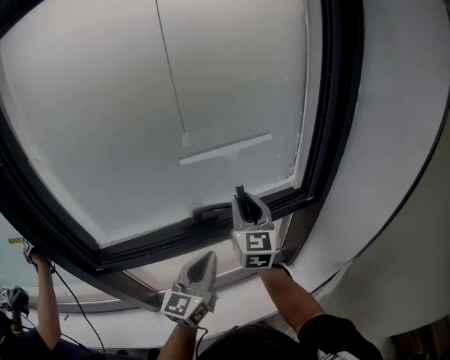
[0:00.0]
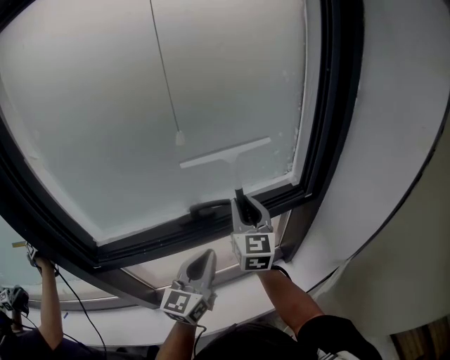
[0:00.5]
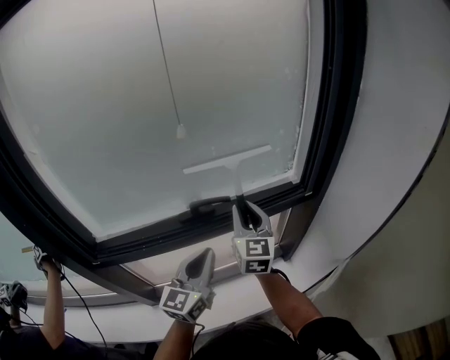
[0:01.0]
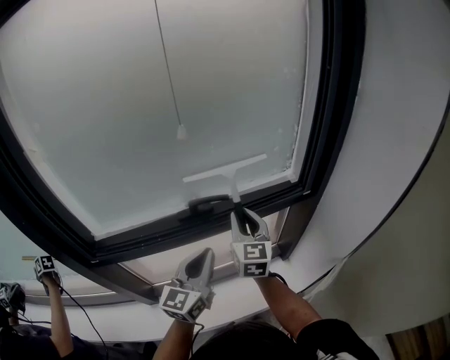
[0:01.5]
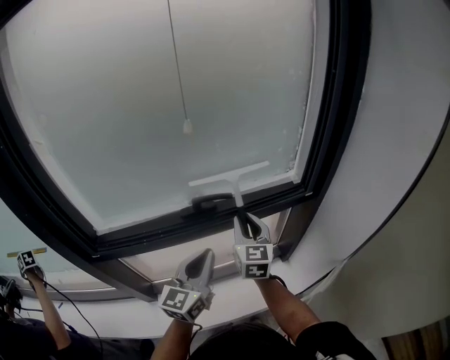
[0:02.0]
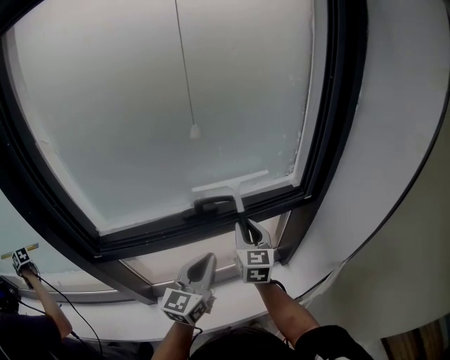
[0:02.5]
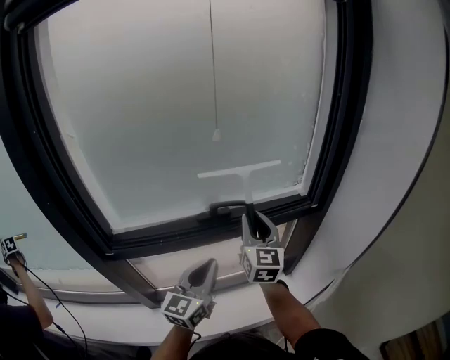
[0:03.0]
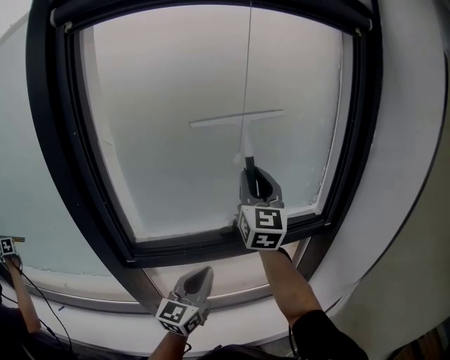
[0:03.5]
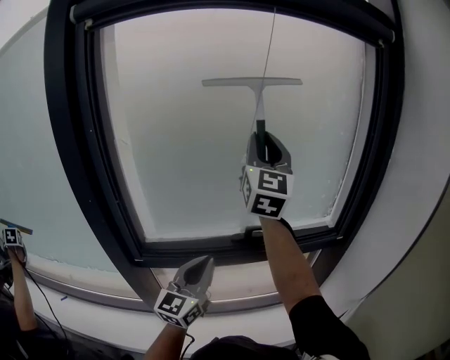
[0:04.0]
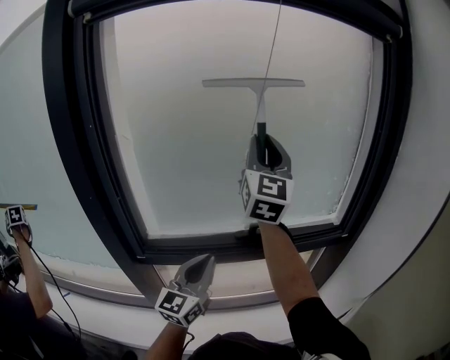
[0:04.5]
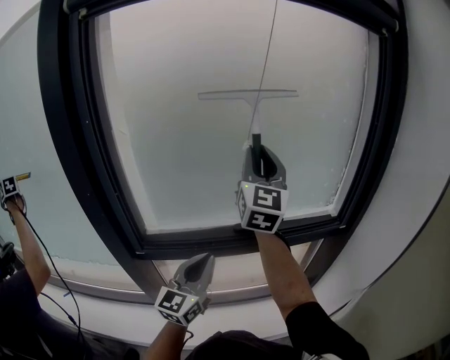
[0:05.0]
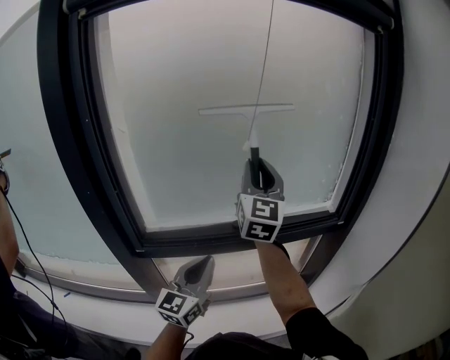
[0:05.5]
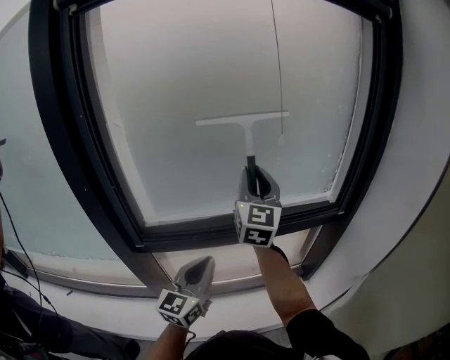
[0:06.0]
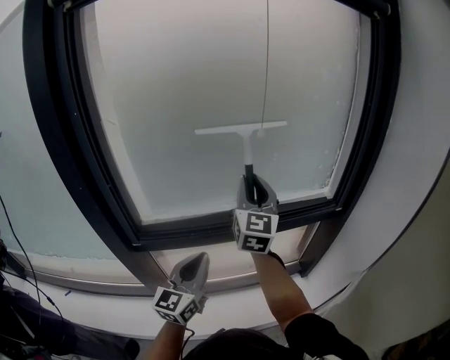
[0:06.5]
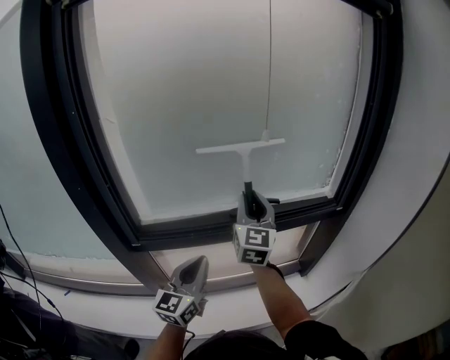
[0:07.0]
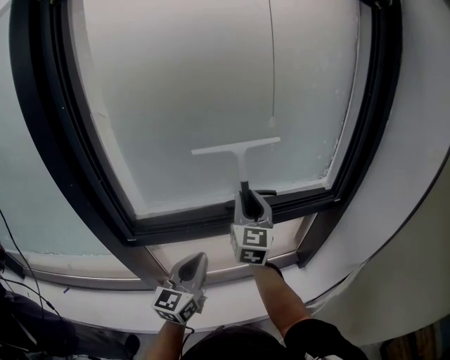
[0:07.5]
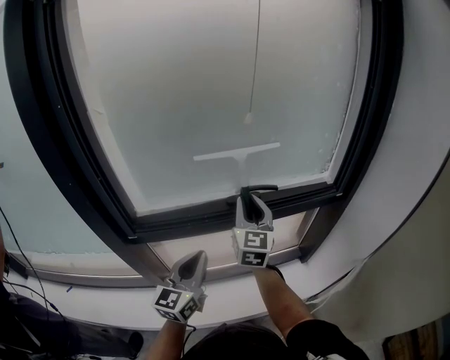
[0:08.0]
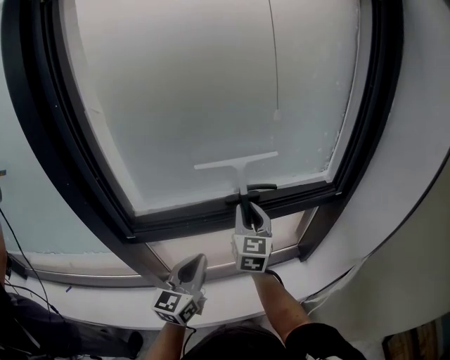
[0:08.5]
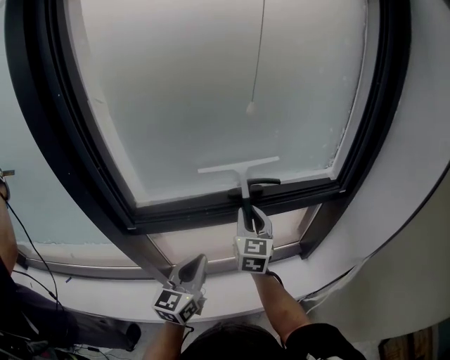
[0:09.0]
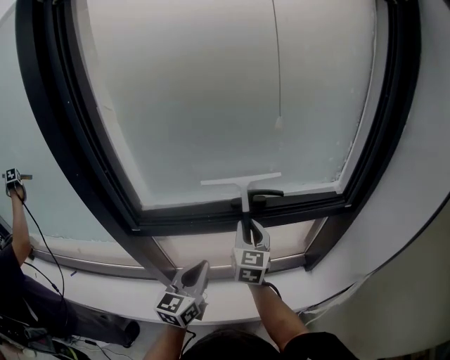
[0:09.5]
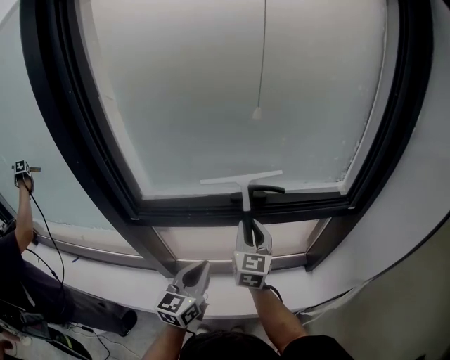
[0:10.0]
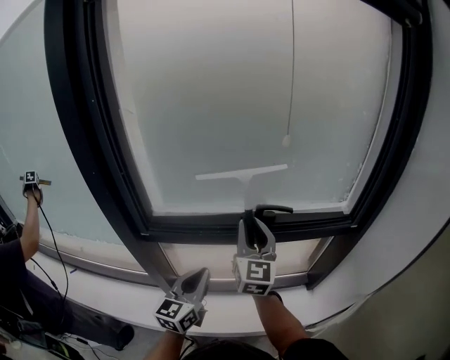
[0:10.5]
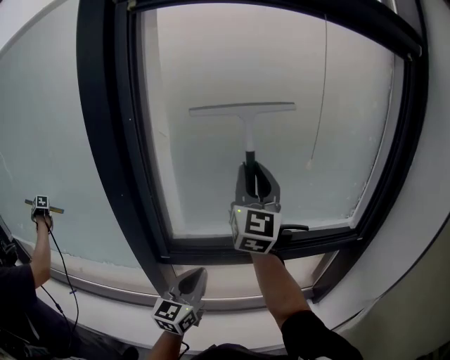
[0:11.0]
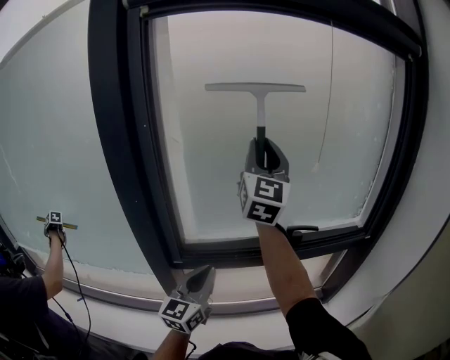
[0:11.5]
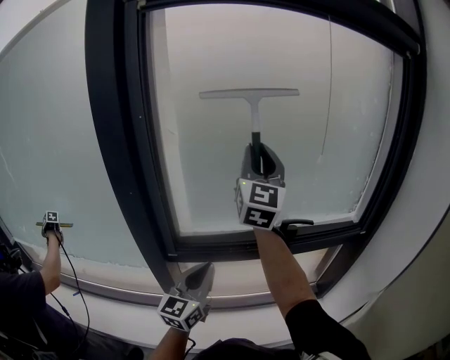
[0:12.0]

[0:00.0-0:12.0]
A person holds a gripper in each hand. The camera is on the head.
0:00.0 to 0:02.0: The right gripper shifts approximately 10 cm downward.
0:02.0 to 0:04.0: The left gripper is displaced to the left and upward by approximately 15 cm. Meanwhile the right gripper is displaced upward by about 40 cm, and tips its fingers upward by some 30 degrees.
0:04.0 to 0:06.0: The right gripper shifts roughly 15 cm downward; the left gripper changes place by roughly 5 cm.
0:06.0 to 0:08.0: The right gripper goes approximately 15 cm downward.
0:08.0 to 0:10.0: The left gripper shifts by approximately 5 cm. Meanwhile the right gripper shifts some 10 cm downward.
0:10.0 to 0:12.0: The left gripper is displaced to the left and upward by roughly 15 cm. Meanwhile the right gripper heads upward, covering approximately 35 cm, and angles its fingers upward, by roughly 30 degrees.

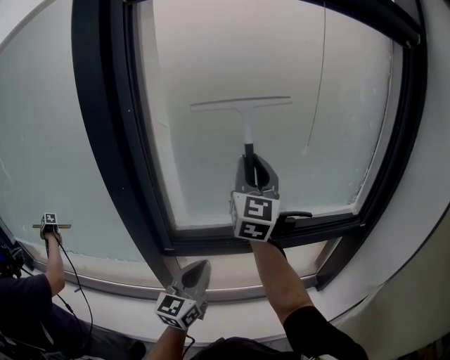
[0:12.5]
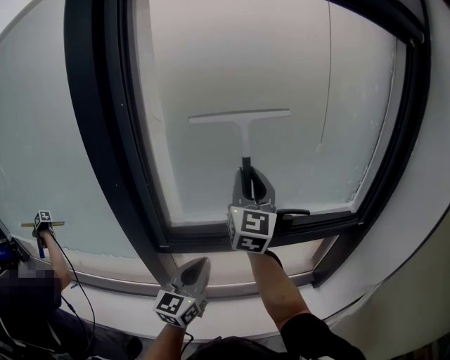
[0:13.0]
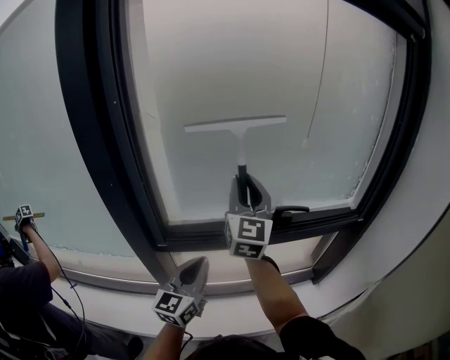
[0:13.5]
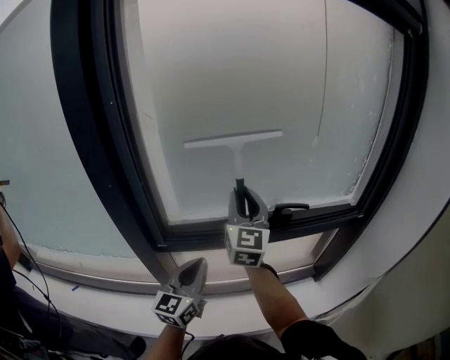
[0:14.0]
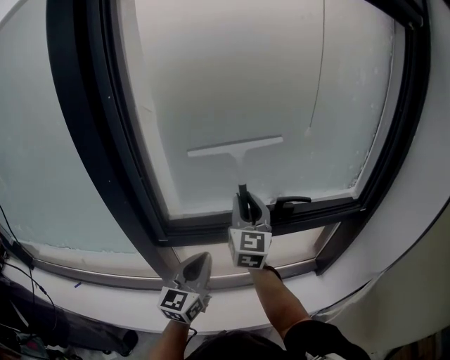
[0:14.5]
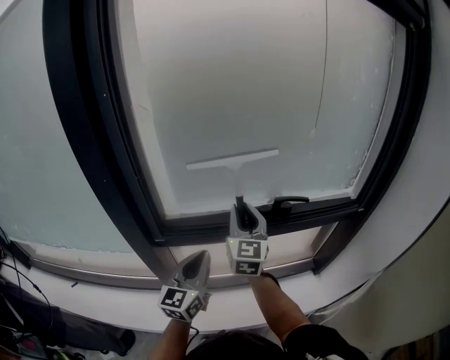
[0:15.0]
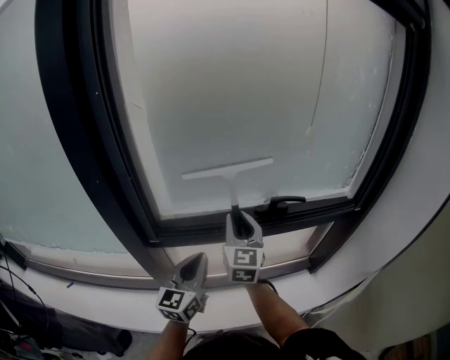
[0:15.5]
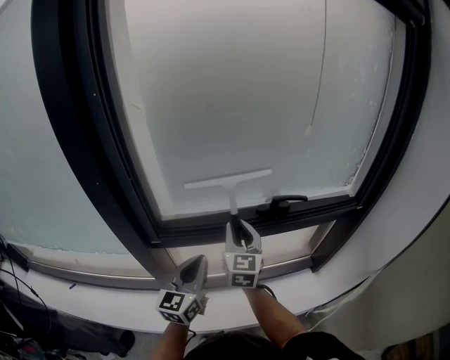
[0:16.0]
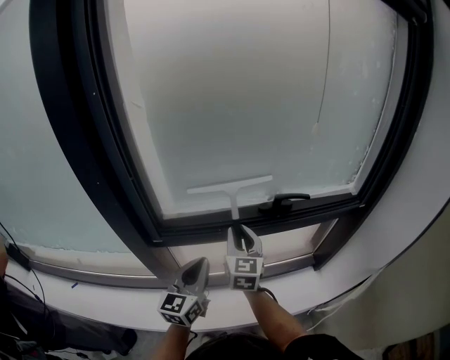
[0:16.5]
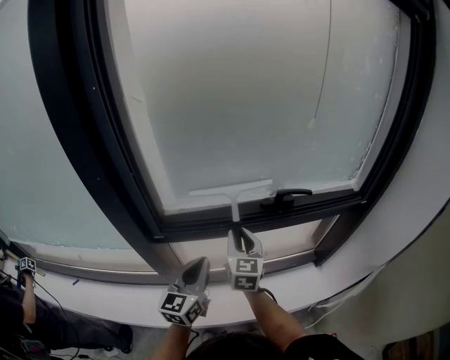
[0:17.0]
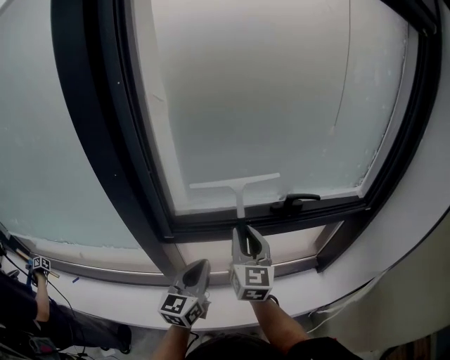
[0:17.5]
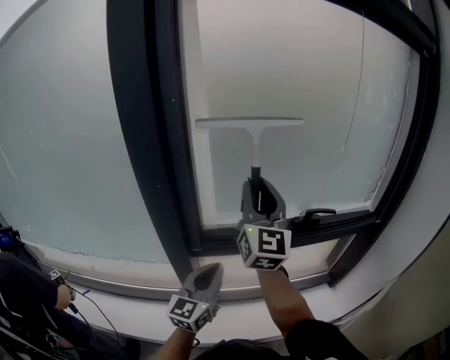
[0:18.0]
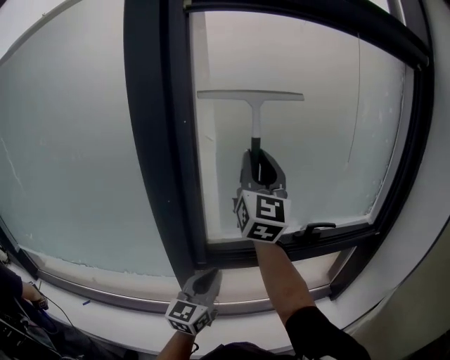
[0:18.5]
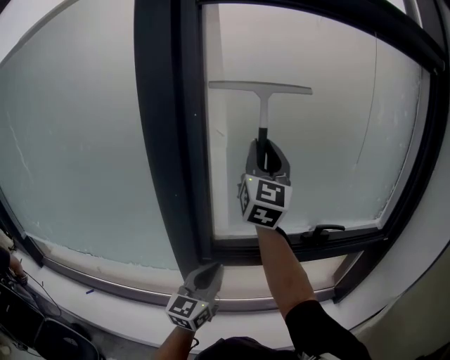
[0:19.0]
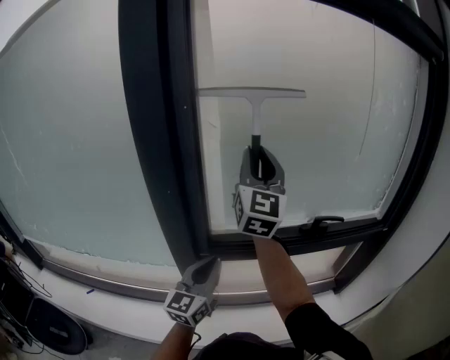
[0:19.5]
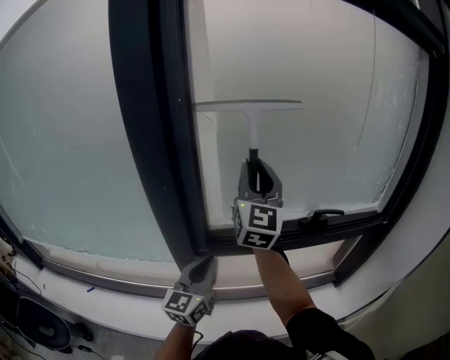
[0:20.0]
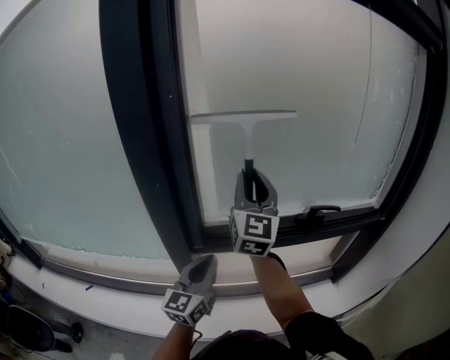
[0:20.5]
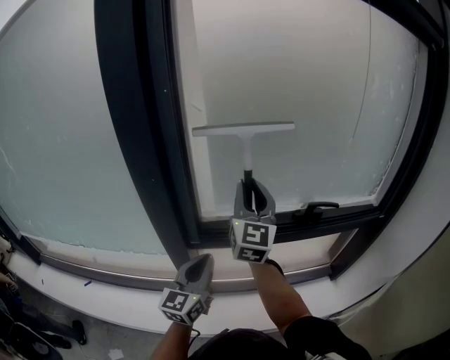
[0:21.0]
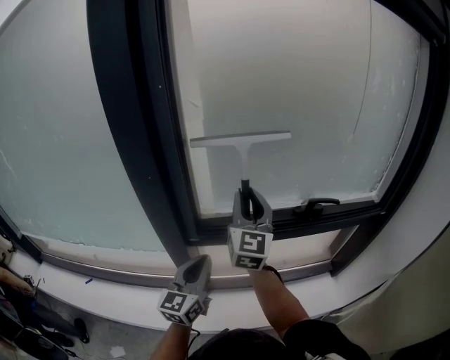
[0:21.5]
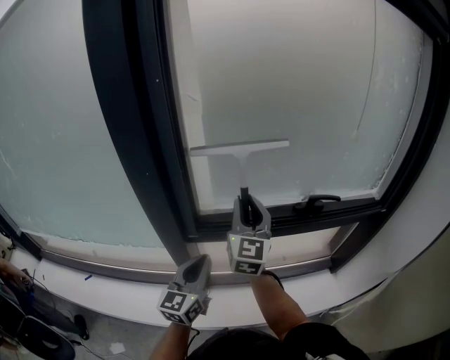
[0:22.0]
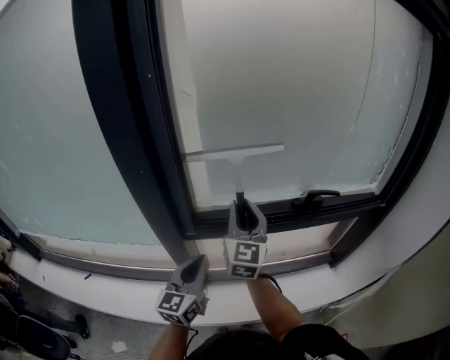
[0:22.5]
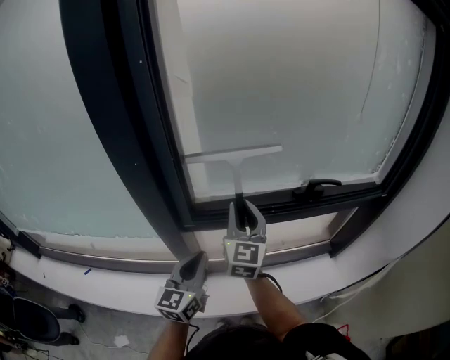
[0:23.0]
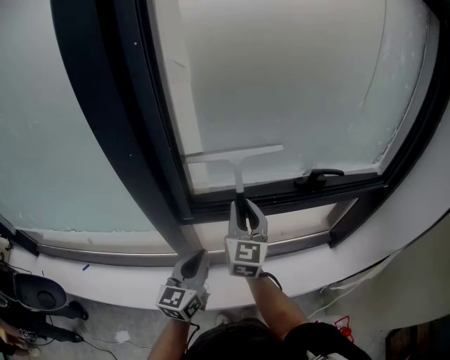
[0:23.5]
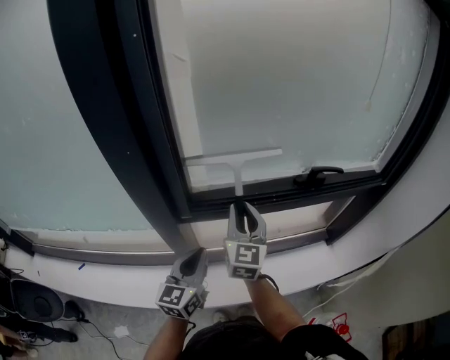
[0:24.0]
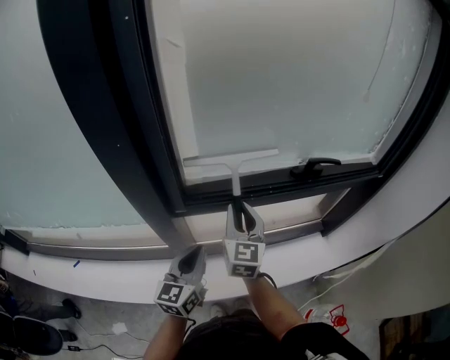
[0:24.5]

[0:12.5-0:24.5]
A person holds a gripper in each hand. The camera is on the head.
0:12.5 to 0:14.5: The right gripper travels downward by some 15 cm.
0:14.5 to 0:16.5: The right gripper heads downward, covering about 10 cm.
0:16.5 to 0:18.5: The left gripper goes about 10 cm to the left and upward, while the right gripper moves upward, about 35 cm, and tips its fingers upward by some 40 degrees.
0:18.5 to 0:20.5: The right gripper goes approximately 10 cm downward.
0:20.5 to 0:22.5: The right gripper goes approximately 15 cm downward.
0:22.5 to 0:24.5: The right gripper shifts roughly 10 cm downward, while the left gripper is displaced downward by about 5 cm.

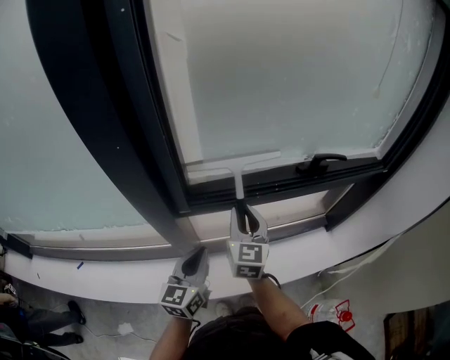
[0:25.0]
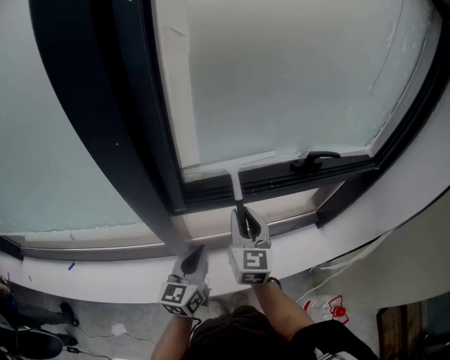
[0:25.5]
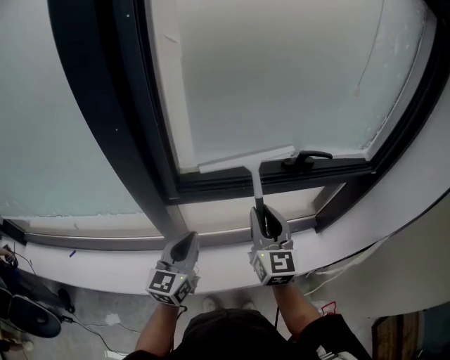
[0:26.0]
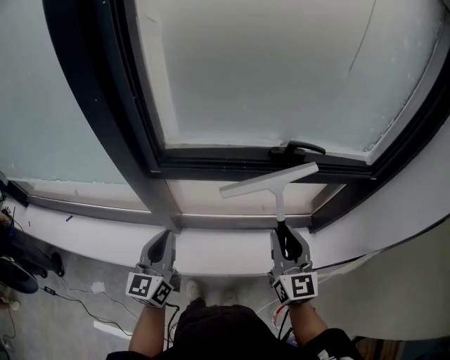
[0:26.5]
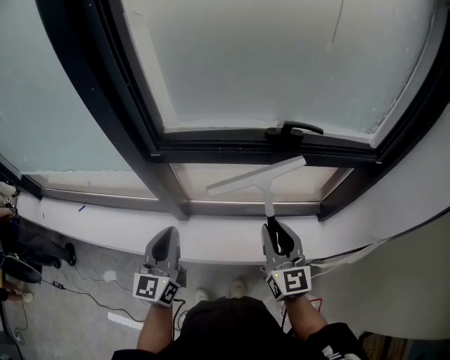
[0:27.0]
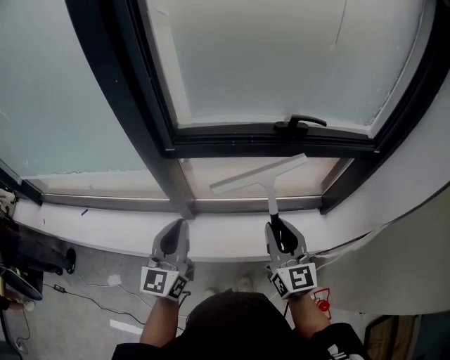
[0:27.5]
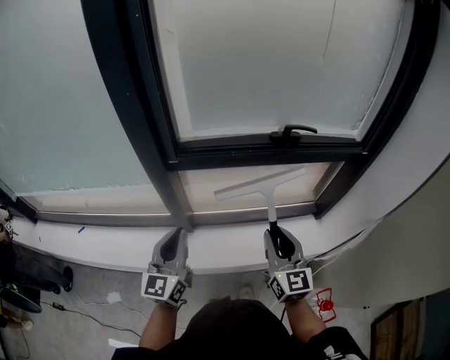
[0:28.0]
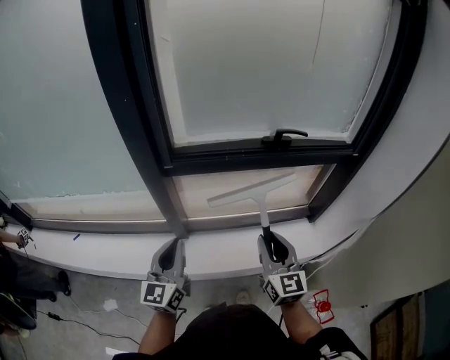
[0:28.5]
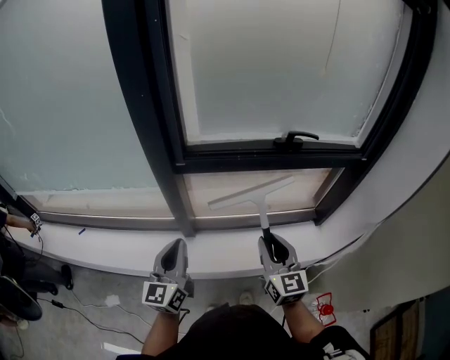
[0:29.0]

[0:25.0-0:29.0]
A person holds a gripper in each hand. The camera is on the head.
0:25.0 to 0:27.0: The right gripper shifts approximately 25 cm to the right and backward, and turns by roughly 20 degrees; the left gripper goes some 15 cm backward, to the right and upward, and changes its angle by approximately 20 degrees.
0:27.0 to 0:29.0: The left gripper travels to the left by roughly 5 cm. Meanwhile the right gripper shifts some 10 cm to the left and backward.
